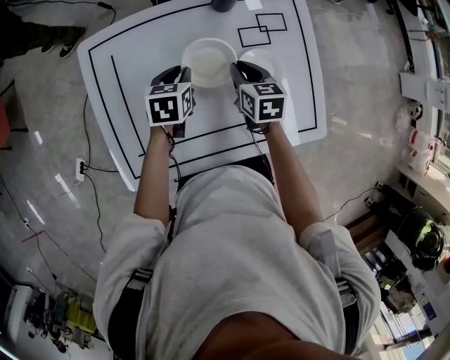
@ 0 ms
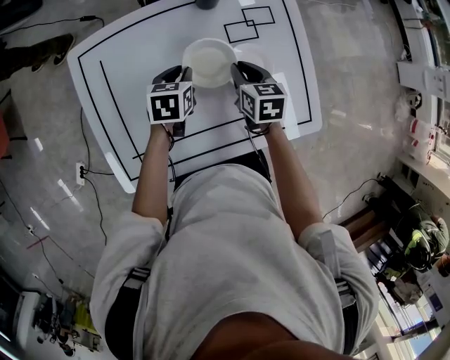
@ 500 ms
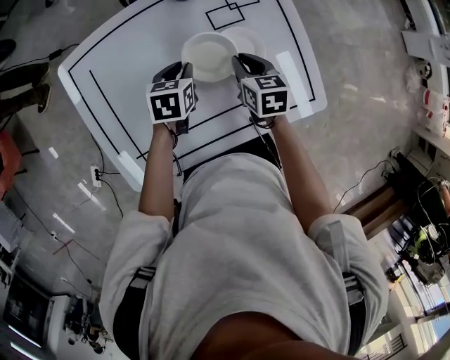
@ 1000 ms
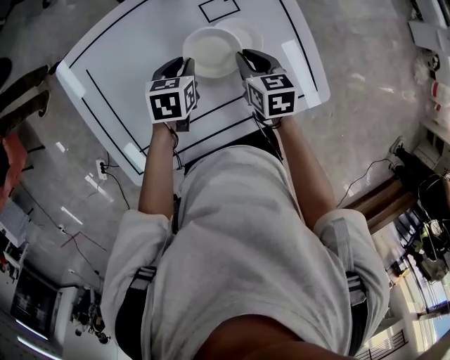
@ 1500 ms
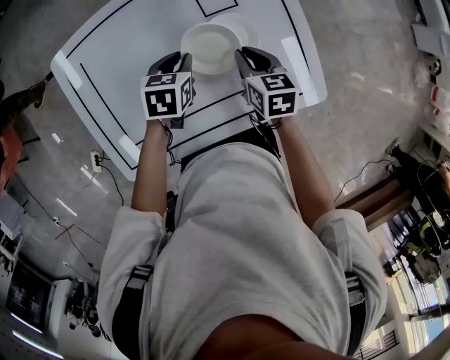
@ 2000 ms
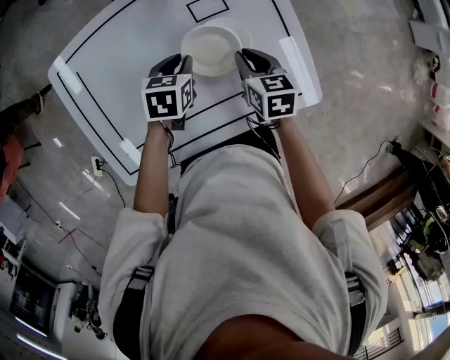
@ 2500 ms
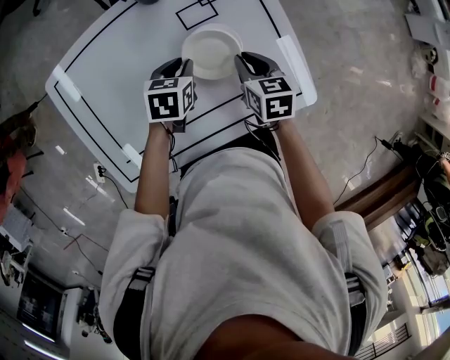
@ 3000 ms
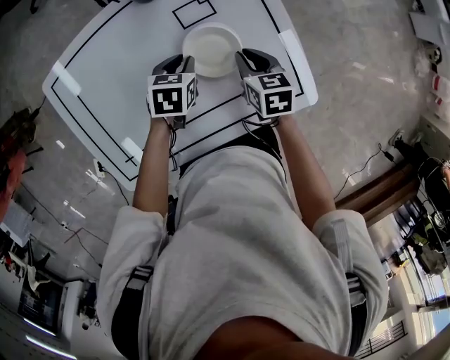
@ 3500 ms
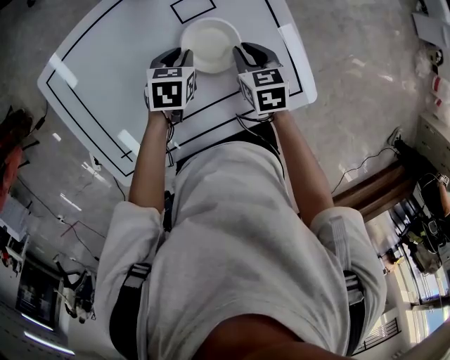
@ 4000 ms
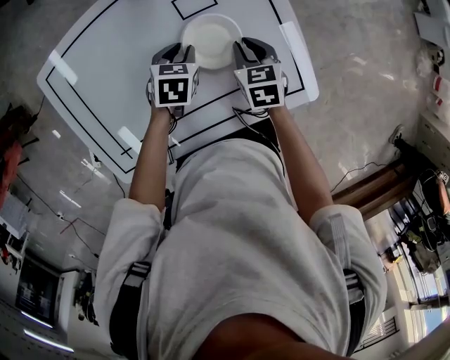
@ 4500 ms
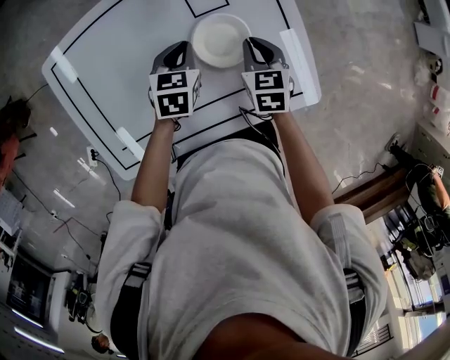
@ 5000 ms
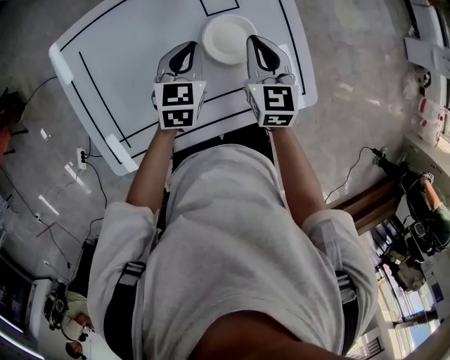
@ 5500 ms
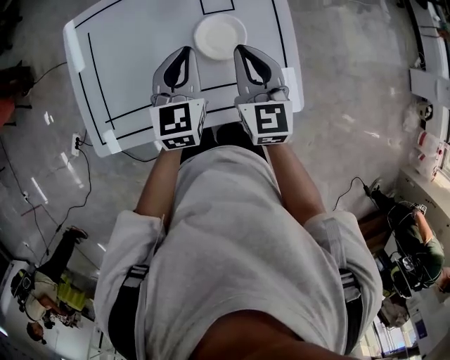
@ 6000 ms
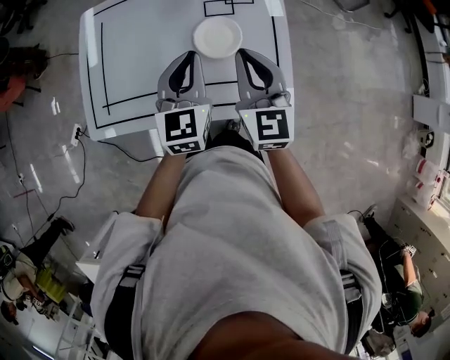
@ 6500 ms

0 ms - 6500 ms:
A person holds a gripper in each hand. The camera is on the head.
0 ms - 2000 ms: The grippers both shift to the right by some 15 cm.
2000 ms - 4500 ms: Both grippers travel together downward, about 5 cm.
4500 ms - 6500 ms: Both grippers travel together upward and backward, about 30 cm. The left gripper points its fingers approximately 50 degrees further upward, and closes. The right gripper points its fingers some 40 degrees further upward.

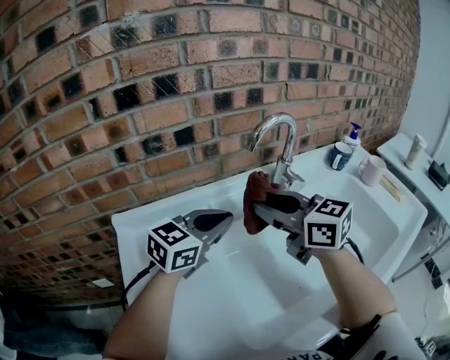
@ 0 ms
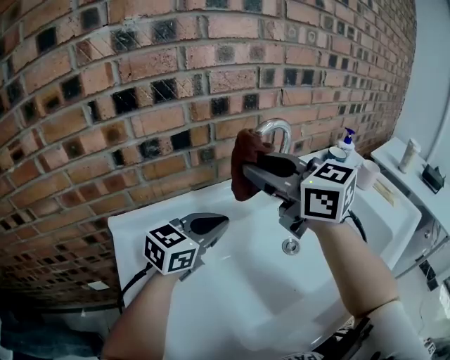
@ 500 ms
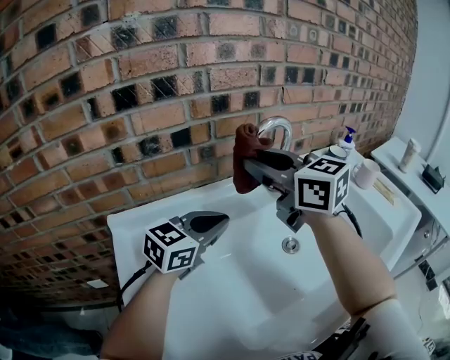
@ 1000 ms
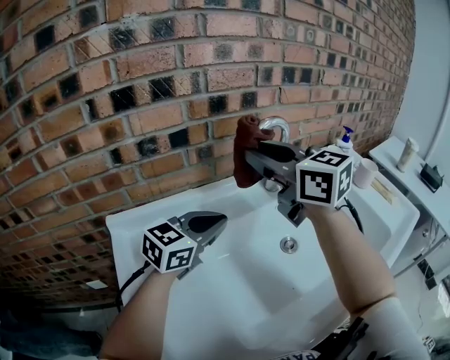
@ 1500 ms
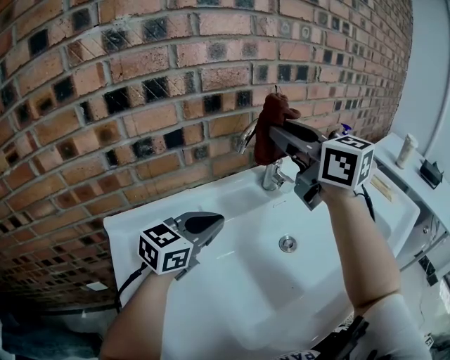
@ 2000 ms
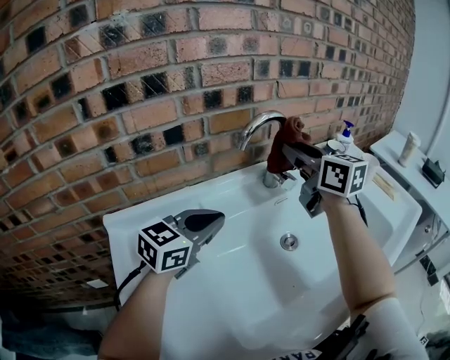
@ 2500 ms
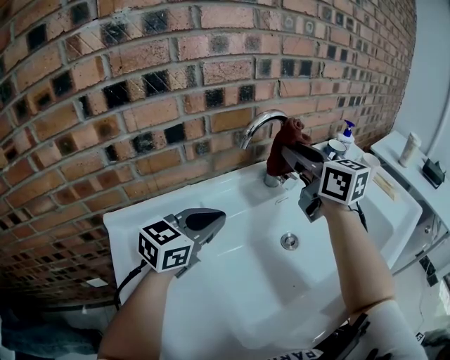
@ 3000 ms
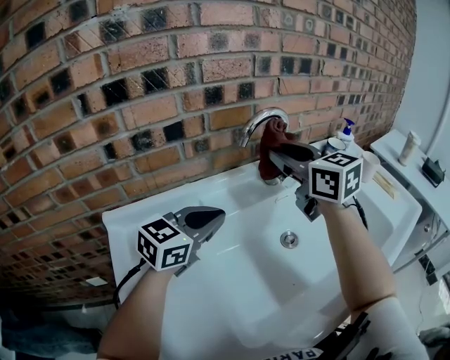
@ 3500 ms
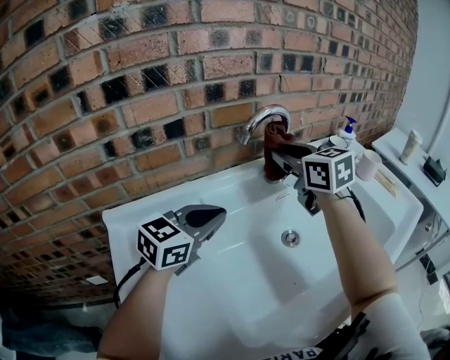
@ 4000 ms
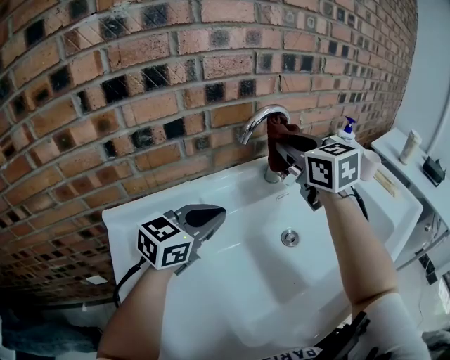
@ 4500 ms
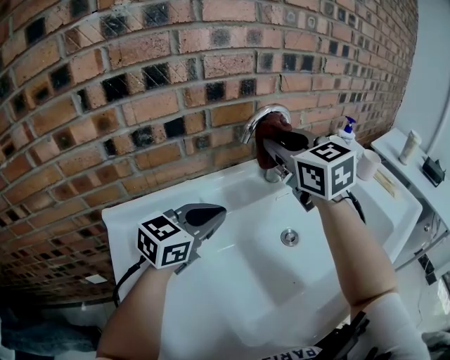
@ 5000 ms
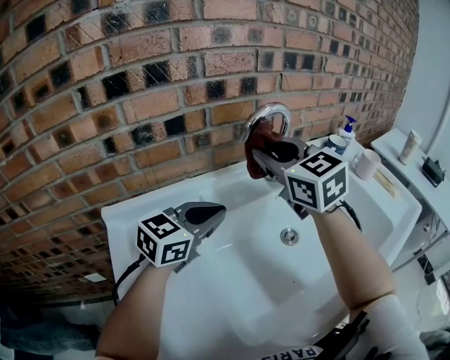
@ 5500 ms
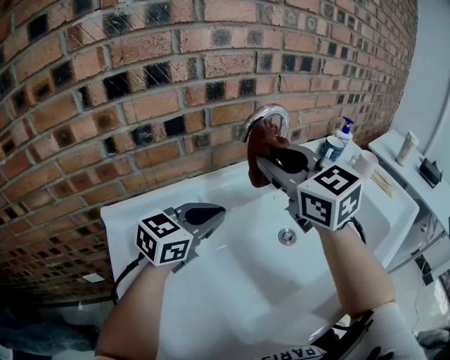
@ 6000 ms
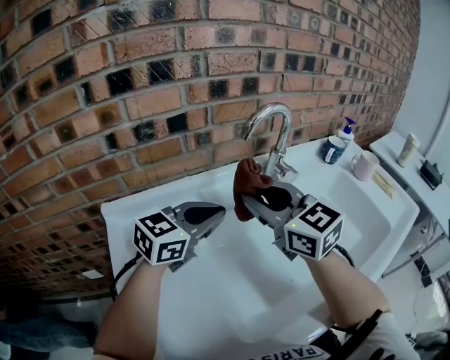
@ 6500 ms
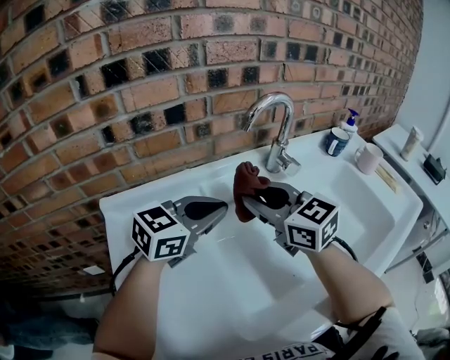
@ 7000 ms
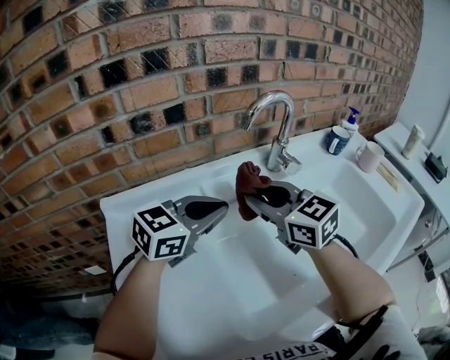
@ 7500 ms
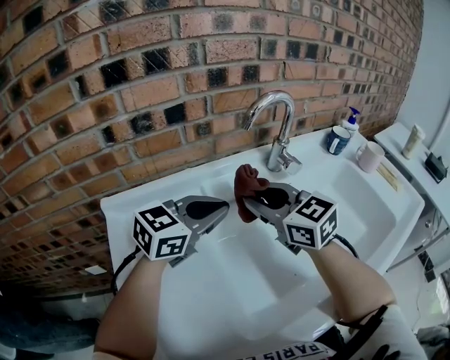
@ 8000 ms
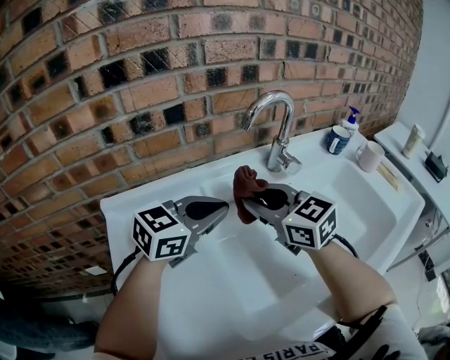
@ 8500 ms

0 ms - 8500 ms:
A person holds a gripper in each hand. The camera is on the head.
0 ms - 2000 ms: The right gripper shifts approximately 15 cm upward and forward.
2000 ms - 4000 ms: The right gripper travels downward and forward by roughly 15 cm, and rotates about 20 degrees.
4000 ms - 6500 ms: The right gripper shifts about 15 cm backward and to the left.
6500 ms - 8500 ms: The right gripper heads downward, covering about 5 cm.

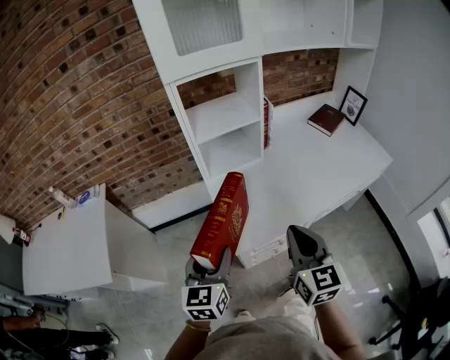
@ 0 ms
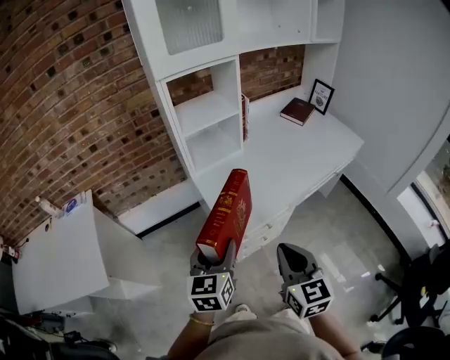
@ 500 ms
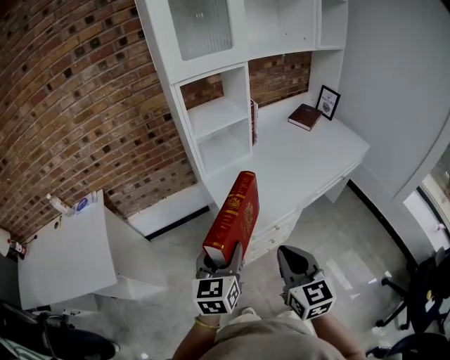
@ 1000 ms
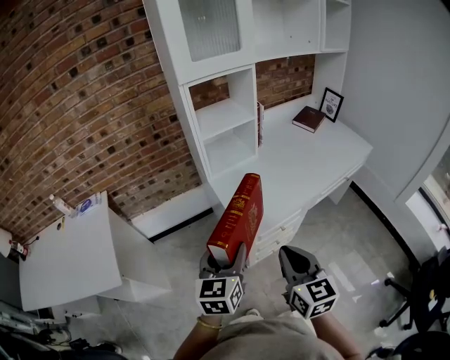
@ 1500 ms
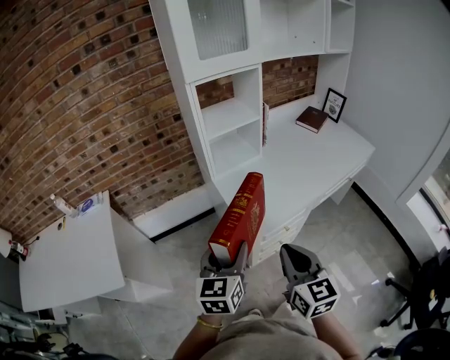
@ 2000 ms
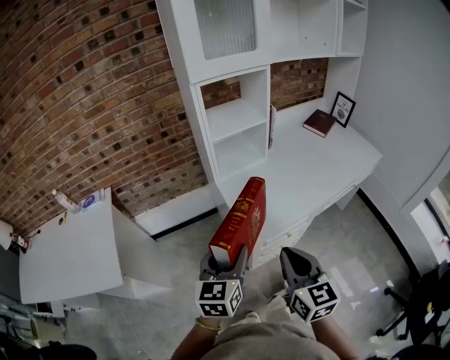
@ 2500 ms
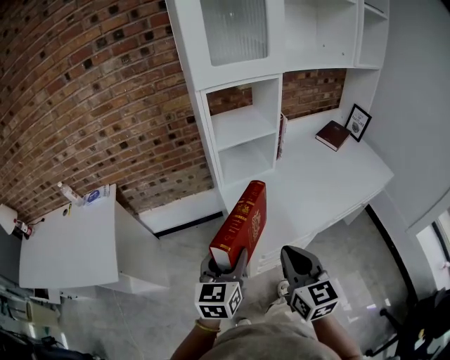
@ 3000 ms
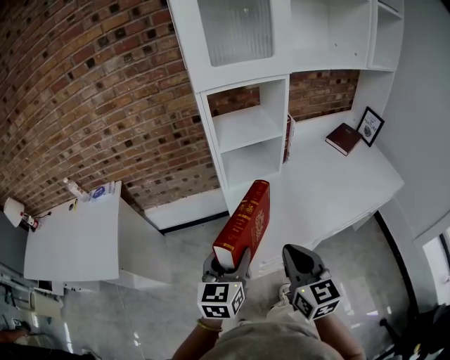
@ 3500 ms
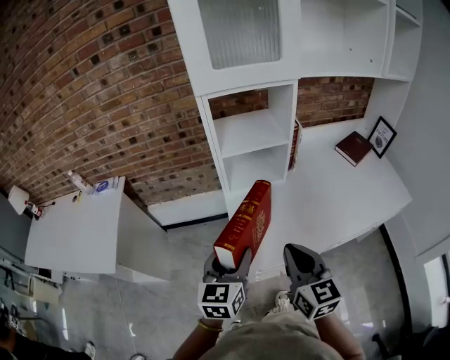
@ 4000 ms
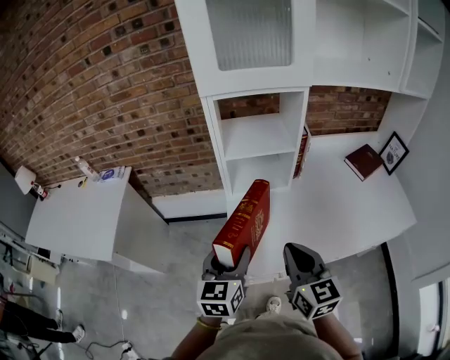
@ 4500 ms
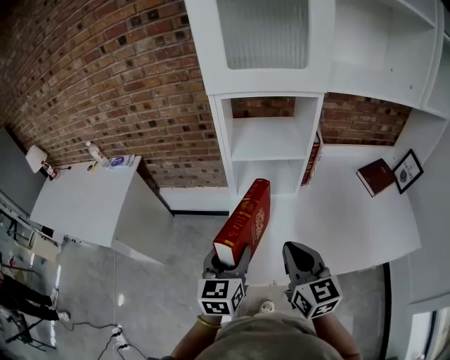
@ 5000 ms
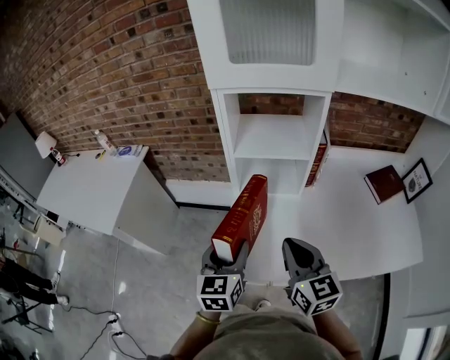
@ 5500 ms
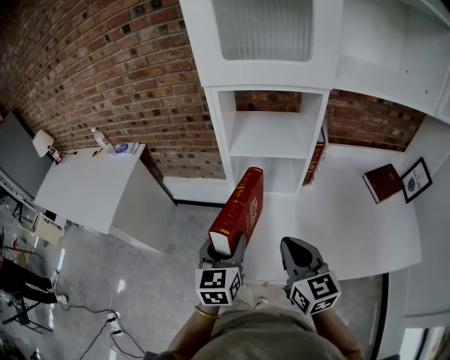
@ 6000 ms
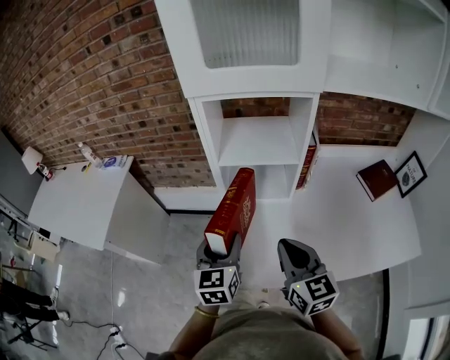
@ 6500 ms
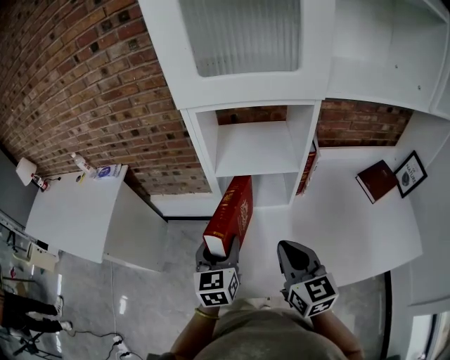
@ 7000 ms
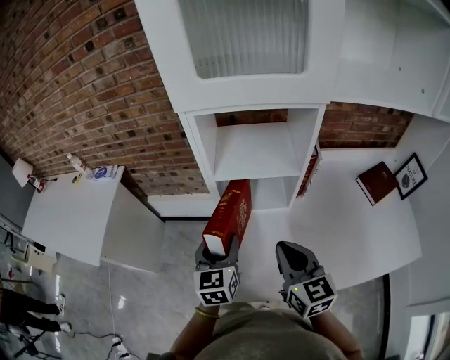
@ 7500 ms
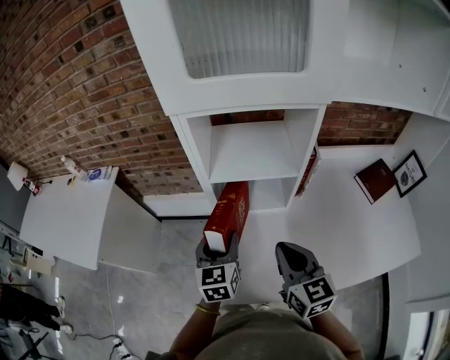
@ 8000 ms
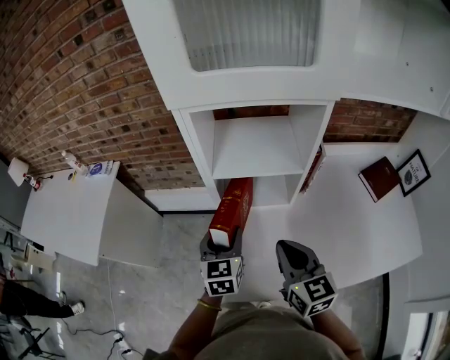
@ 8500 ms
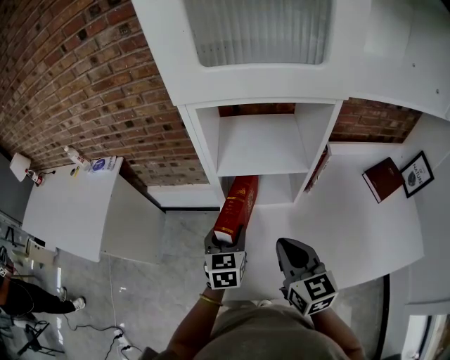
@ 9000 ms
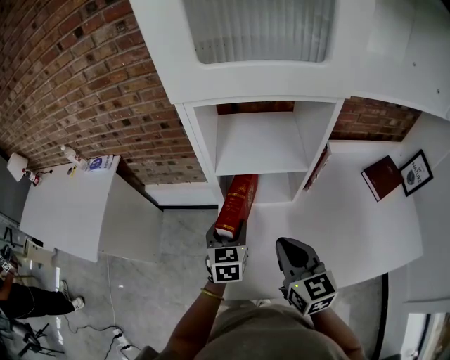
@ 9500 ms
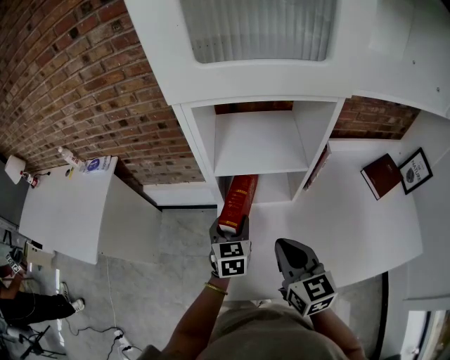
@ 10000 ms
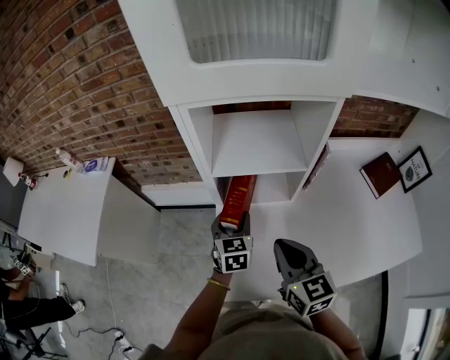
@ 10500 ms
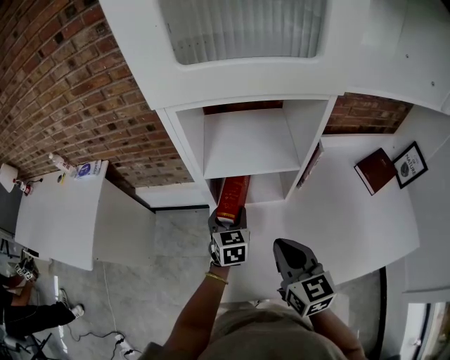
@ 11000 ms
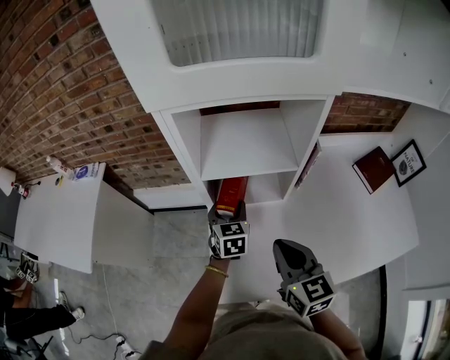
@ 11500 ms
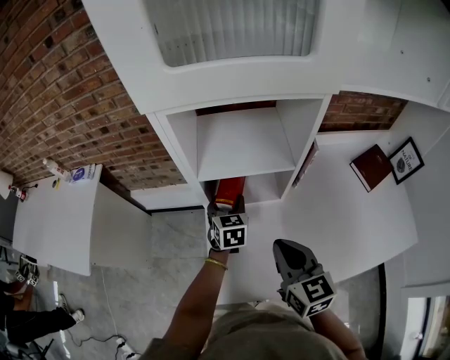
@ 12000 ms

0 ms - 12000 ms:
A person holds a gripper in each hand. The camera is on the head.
0 ms - 2000 ms: The right gripper goes some 15 cm backward and to the left; the left gripper heads backward, covering about 5 cm.
2000 ms - 4000 ms: Both grippers move forward and to the right, about 15 cm.
4000 ms - 6000 ms: Both grippers move forward and to the right, about 10 cm. The left gripper turns by some 20 degrees.
6000 ms - 8000 ms: The left gripper travels forward by roughly 10 cm. Meanwhile the right gripper goes some 10 cm forward.
8000 ms - 10000 ms: The left gripper travels downward by some 5 cm.
10000 ms - 12000 ms: The left gripper is displaced forward by about 10 cm.
